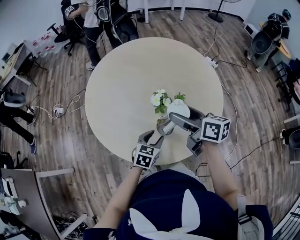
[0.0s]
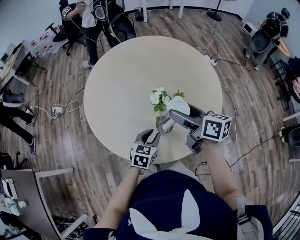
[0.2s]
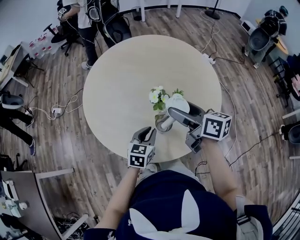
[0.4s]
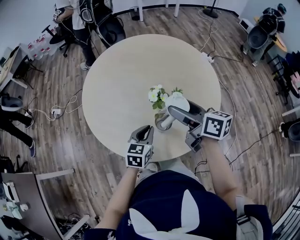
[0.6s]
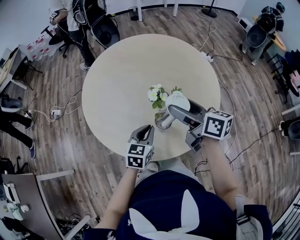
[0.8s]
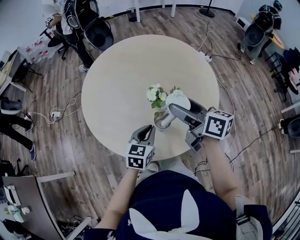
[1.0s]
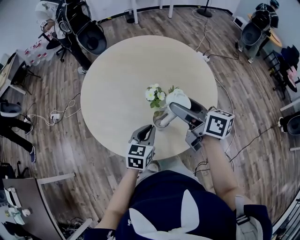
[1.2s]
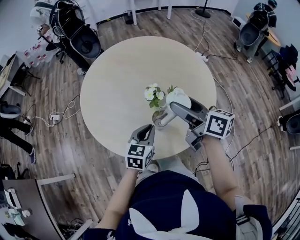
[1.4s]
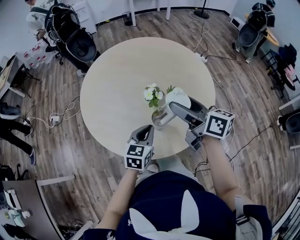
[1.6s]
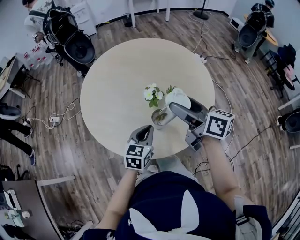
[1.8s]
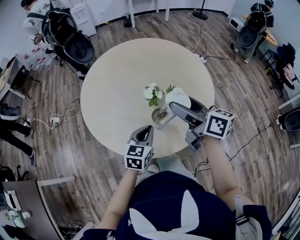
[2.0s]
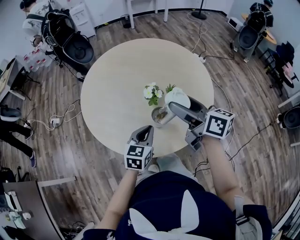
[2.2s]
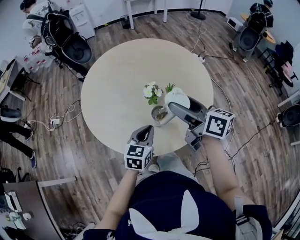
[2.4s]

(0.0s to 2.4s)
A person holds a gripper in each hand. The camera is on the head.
0.0s - 1.2s: The left gripper moves upward, approximately 10 cm, and closes its fingers. The right gripper ends up roughly 5 cm from where it was.
1.2s - 2.4s: The grippers move only a little.

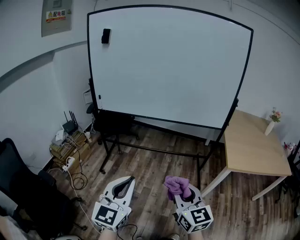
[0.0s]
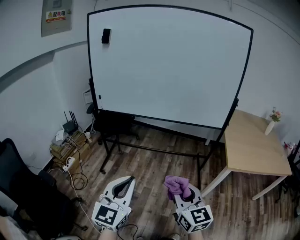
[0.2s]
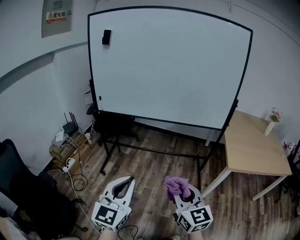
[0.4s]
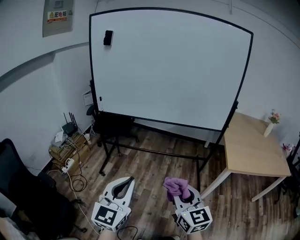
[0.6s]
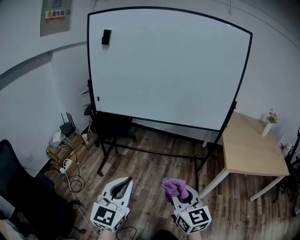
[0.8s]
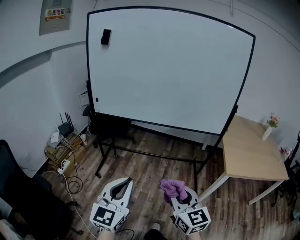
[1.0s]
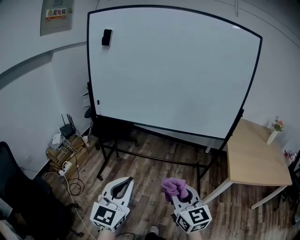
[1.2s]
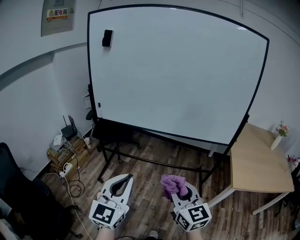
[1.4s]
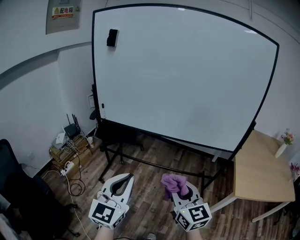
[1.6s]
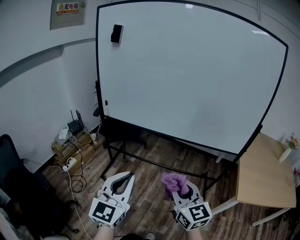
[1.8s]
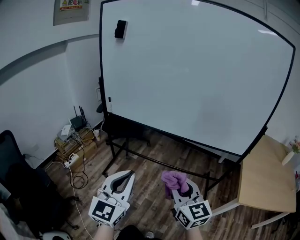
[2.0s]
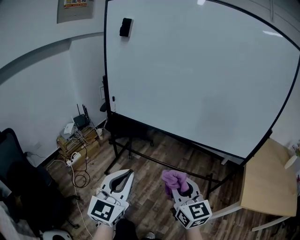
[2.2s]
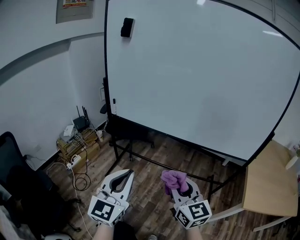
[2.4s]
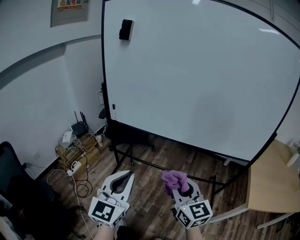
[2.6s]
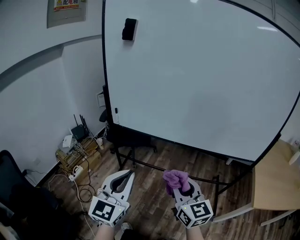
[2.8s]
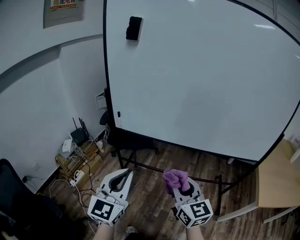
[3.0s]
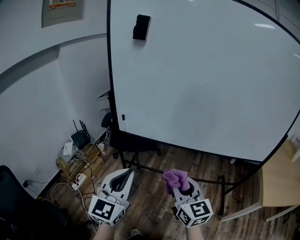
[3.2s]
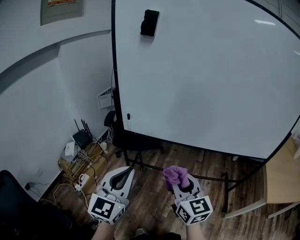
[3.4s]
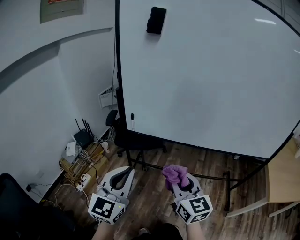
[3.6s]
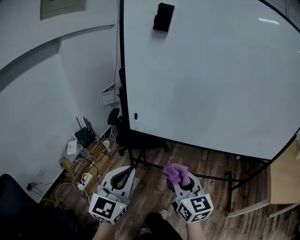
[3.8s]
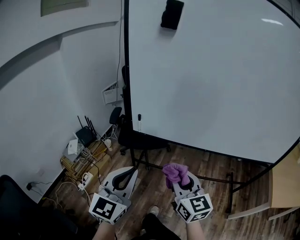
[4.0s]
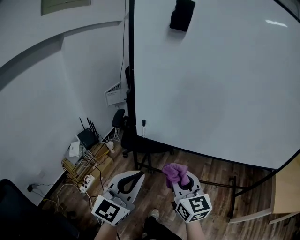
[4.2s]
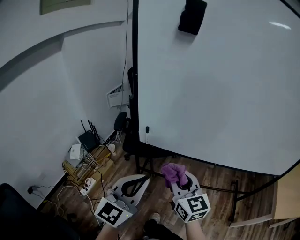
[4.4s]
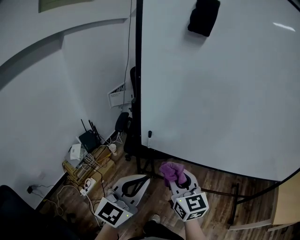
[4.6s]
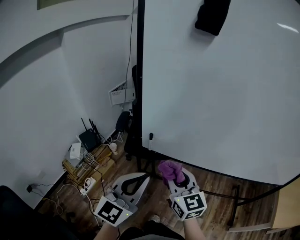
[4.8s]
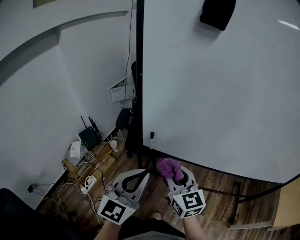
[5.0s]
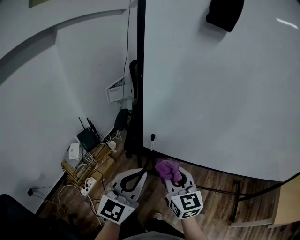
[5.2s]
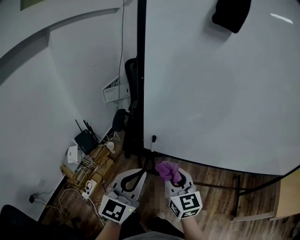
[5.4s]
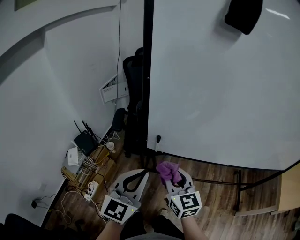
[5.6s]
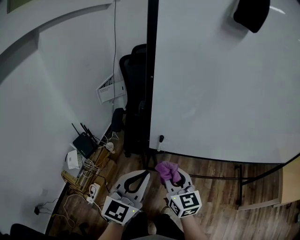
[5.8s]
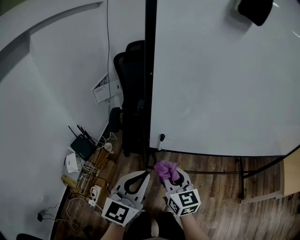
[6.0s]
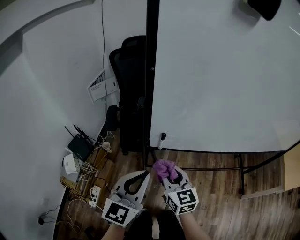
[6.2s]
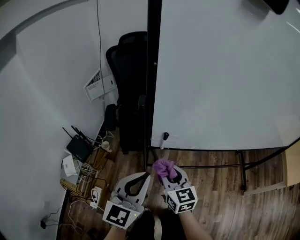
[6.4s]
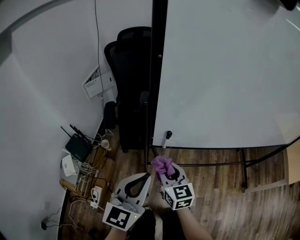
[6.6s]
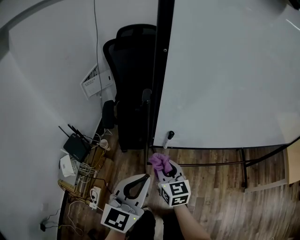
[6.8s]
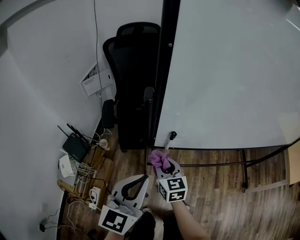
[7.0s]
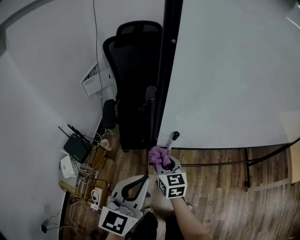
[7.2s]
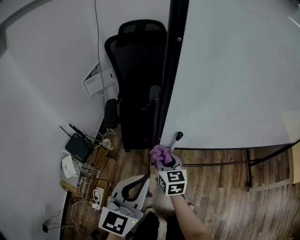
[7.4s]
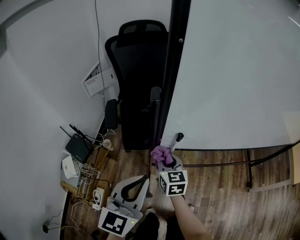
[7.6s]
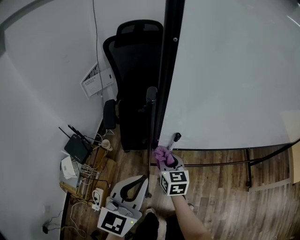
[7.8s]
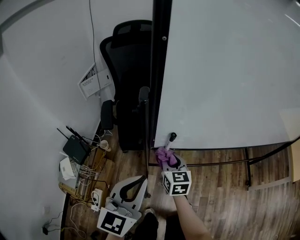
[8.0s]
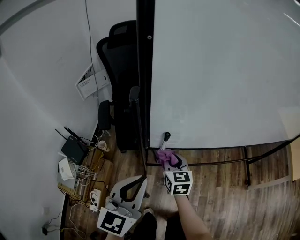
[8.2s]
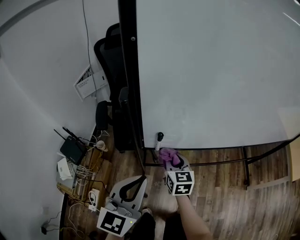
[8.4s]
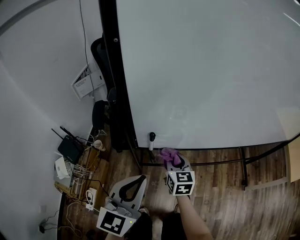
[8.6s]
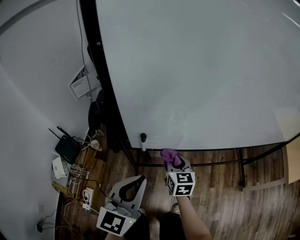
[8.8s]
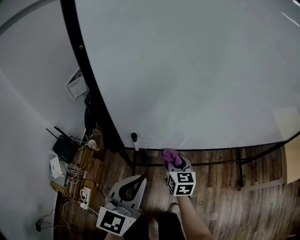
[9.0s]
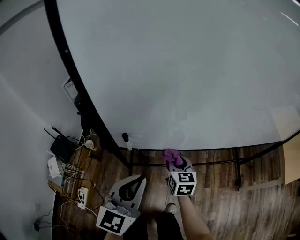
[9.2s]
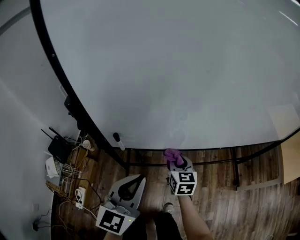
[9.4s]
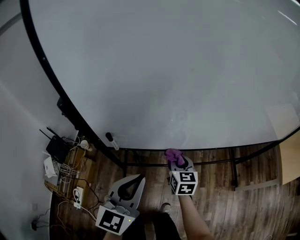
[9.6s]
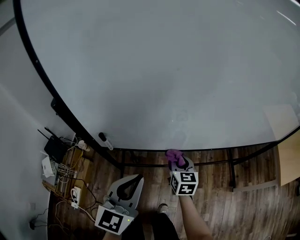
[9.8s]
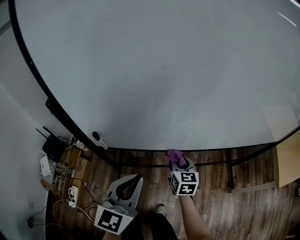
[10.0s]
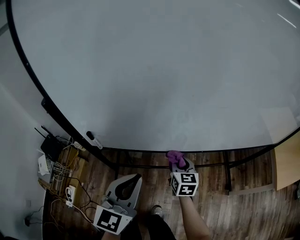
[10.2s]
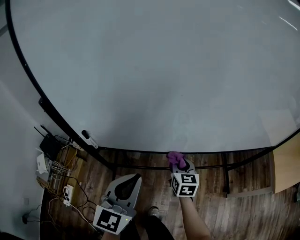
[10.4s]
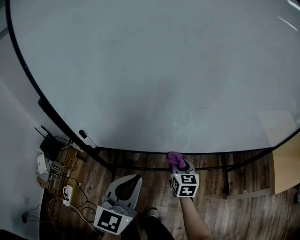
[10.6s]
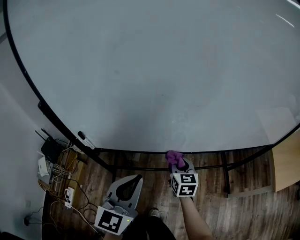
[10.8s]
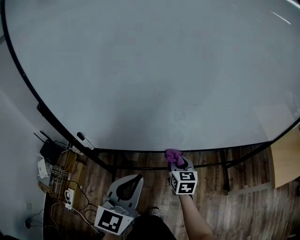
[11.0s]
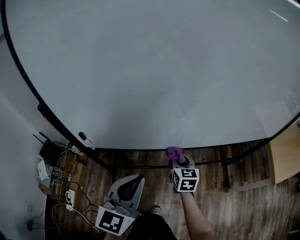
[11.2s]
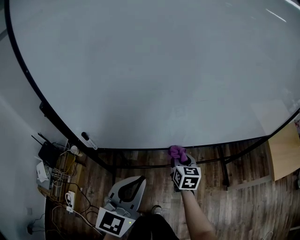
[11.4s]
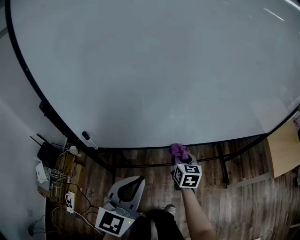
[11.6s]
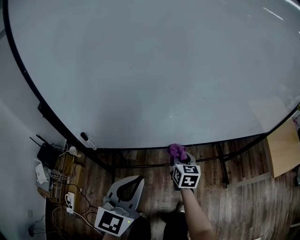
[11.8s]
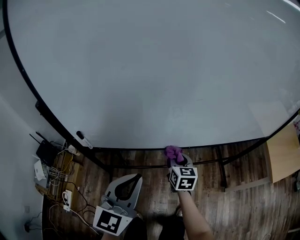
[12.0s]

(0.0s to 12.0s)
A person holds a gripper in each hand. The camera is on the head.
0.0s - 1.6s: Both grippers move forward, some 15 cm.
1.6s - 3.0s: Both grippers move forward and to the left, approximately 25 cm.
3.0s - 4.4s: Both grippers travel together forward and to the left, about 25 cm.
4.4s - 6.0s: The left gripper moves forward, to the left and downward, some 20 cm; the right gripper goes approximately 20 cm to the left, forward and downward.
6.0s - 7.6s: The right gripper goes some 20 cm downward, forward and to the left. The left gripper heads downward and to the left, covering some 10 cm.
7.6s - 9.0s: The right gripper heads to the right, covering some 20 cm, while the left gripper is displaced to the right by roughly 10 cm.
9.0s - 10.4s: The grippers both shift to the right by about 15 cm.
10.4s - 12.0s: There are only small adjustments of the grippers.

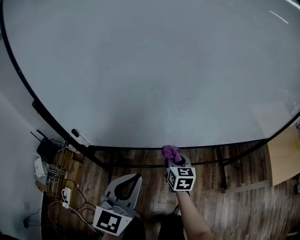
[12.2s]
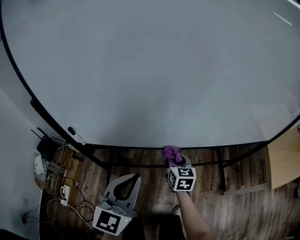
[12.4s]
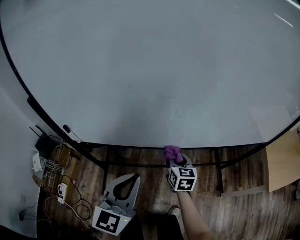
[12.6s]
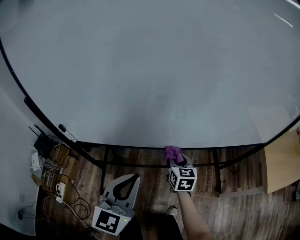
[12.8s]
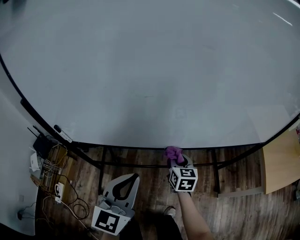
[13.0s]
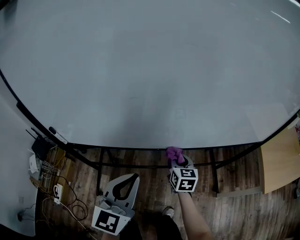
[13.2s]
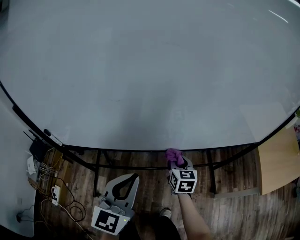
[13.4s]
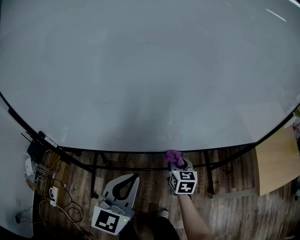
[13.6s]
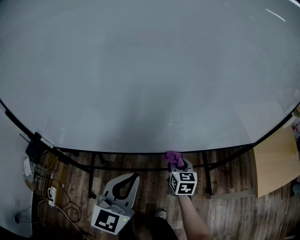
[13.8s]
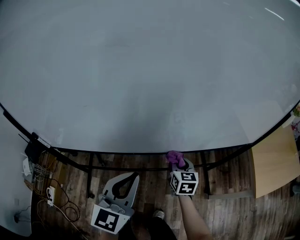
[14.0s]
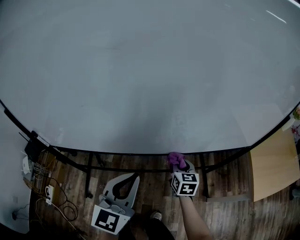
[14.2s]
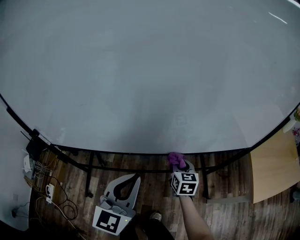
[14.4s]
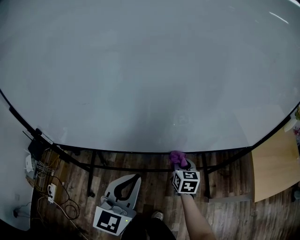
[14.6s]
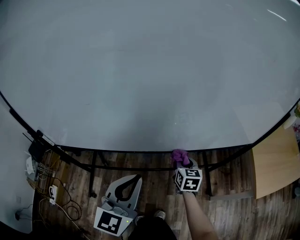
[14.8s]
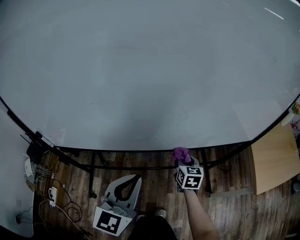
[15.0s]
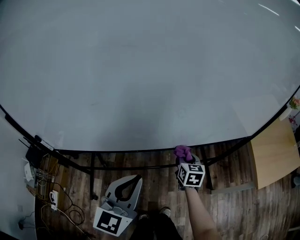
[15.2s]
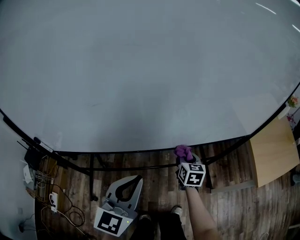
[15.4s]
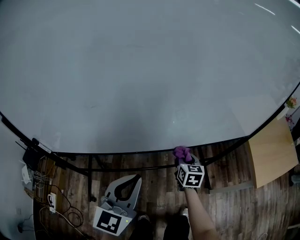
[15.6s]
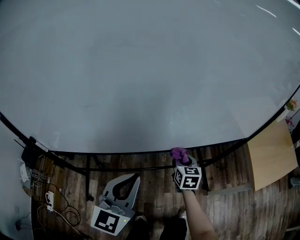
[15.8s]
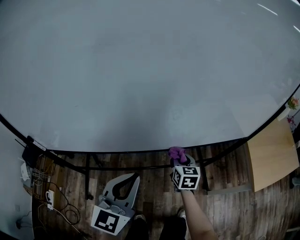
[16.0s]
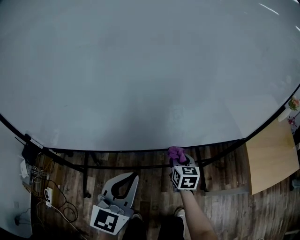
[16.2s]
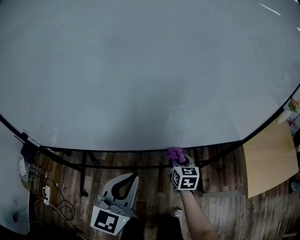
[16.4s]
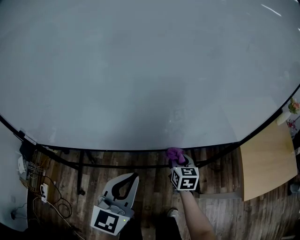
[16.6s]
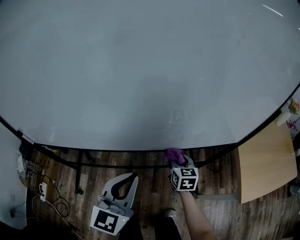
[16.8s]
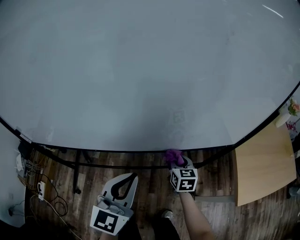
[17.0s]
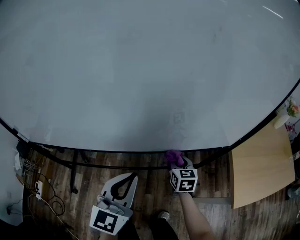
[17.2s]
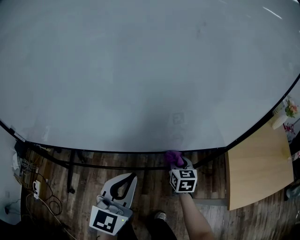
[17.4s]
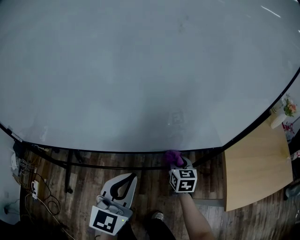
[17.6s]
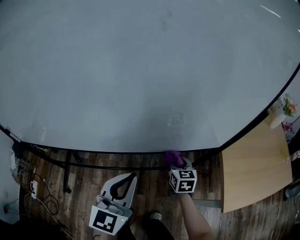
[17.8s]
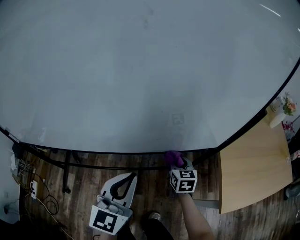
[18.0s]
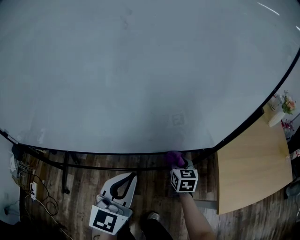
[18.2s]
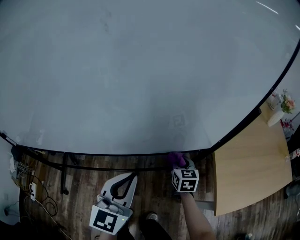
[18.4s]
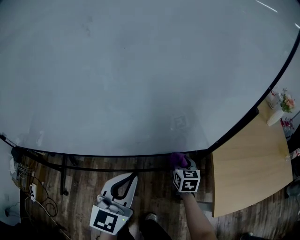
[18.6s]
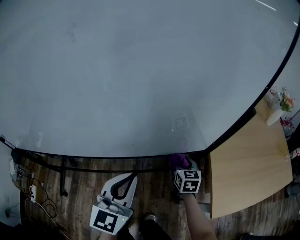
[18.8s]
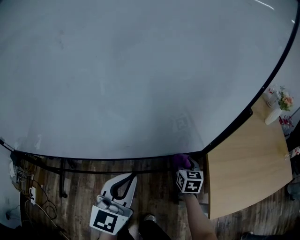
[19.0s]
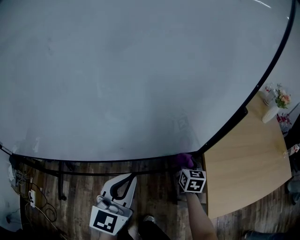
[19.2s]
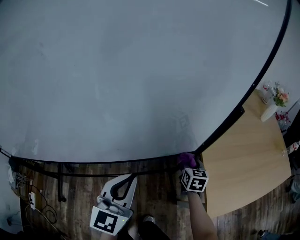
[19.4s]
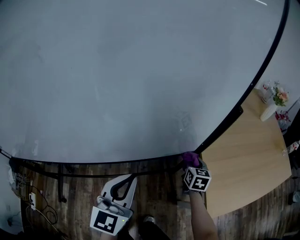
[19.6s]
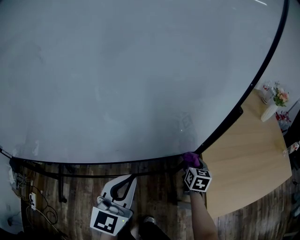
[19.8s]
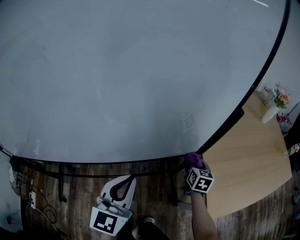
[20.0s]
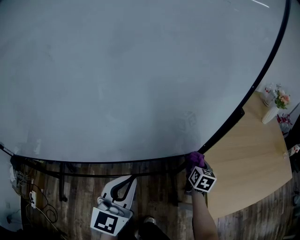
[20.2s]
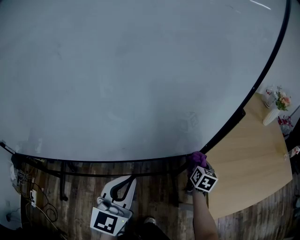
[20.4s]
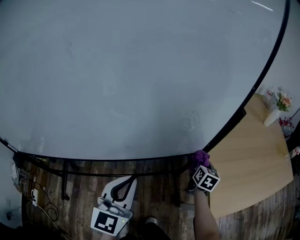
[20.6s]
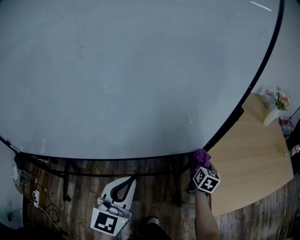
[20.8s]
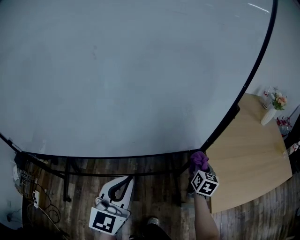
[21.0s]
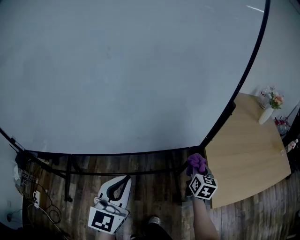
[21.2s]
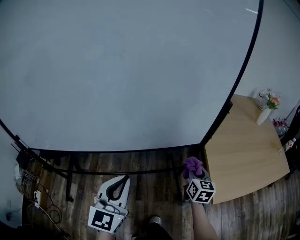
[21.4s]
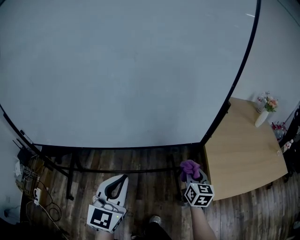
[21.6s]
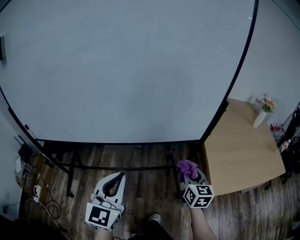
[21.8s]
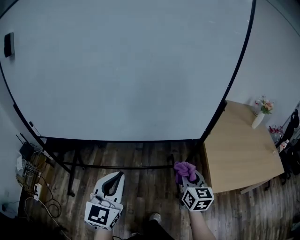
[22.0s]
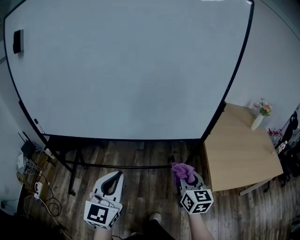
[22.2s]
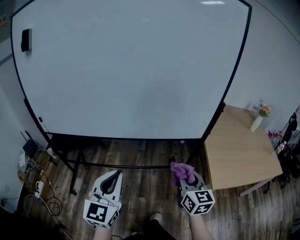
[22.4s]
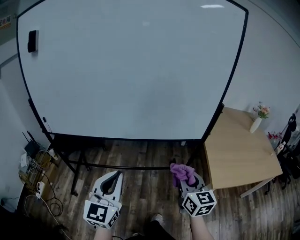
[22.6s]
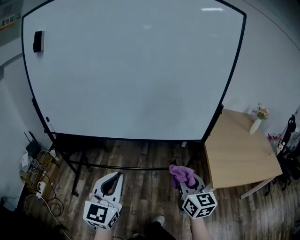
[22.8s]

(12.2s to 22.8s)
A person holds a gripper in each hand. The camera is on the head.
12.2s - 13.8s: Both grippers move to the right, approximately 20 cm.
13.8s - 15.2s: The right gripper changes place by some 5 cm.
15.2s - 16.8s: The two grippers go about 15 cm to the right.
16.8s - 18.2s: The two grippers go some 15 cm to the right.
18.2s - 19.8s: The right gripper goes about 20 cm to the right. Meanwhile the left gripper travels to the right by roughly 10 cm.
19.8s - 21.2s: The left gripper moves backward, approximately 10 cm. Meanwhile the right gripper moves backward and upward, approximately 10 cm.
21.2s - 22.8s: The right gripper heads backward, to the left and upward, covering about 40 cm, and swivels approximately 30 degrees. Meanwhile the left gripper heads backward and to the left, covering approximately 25 cm.
